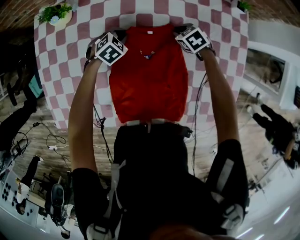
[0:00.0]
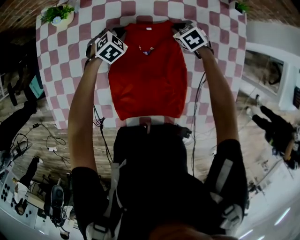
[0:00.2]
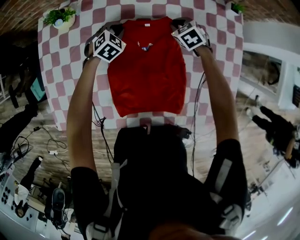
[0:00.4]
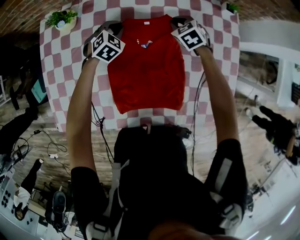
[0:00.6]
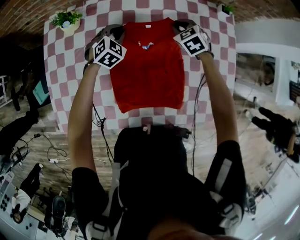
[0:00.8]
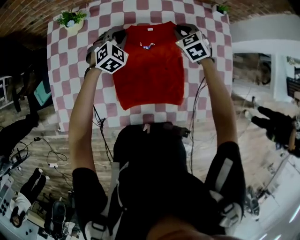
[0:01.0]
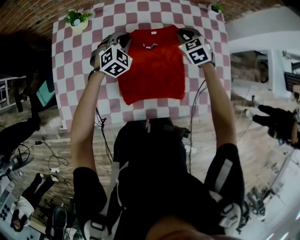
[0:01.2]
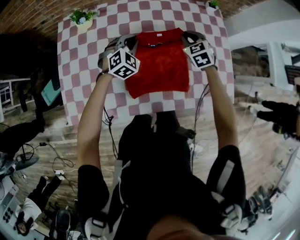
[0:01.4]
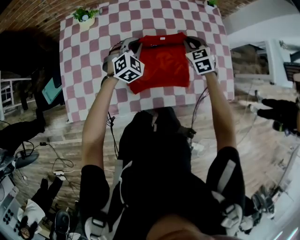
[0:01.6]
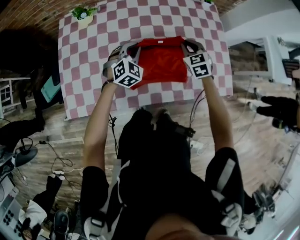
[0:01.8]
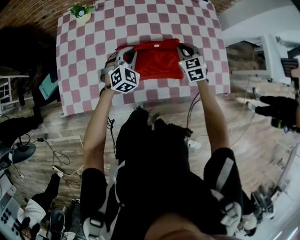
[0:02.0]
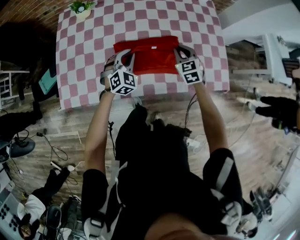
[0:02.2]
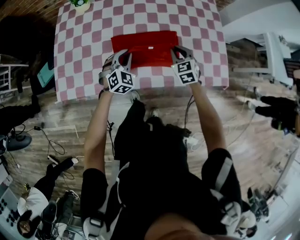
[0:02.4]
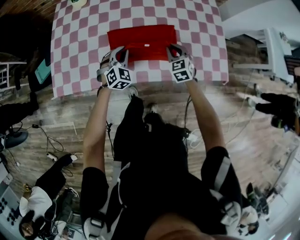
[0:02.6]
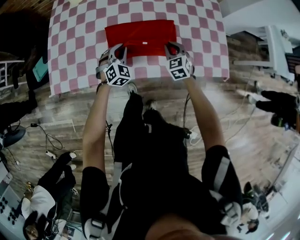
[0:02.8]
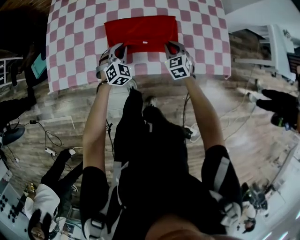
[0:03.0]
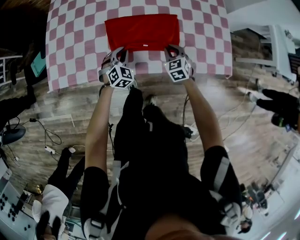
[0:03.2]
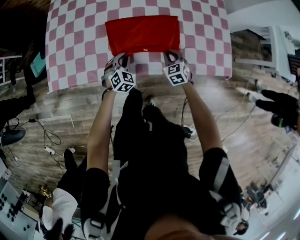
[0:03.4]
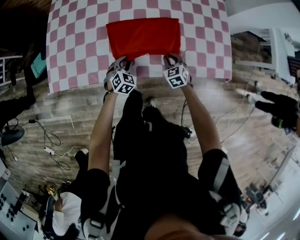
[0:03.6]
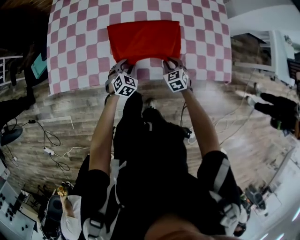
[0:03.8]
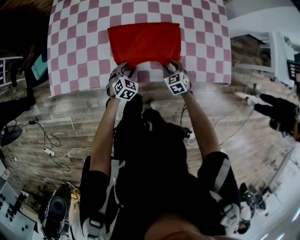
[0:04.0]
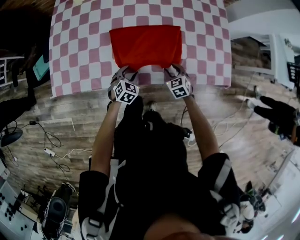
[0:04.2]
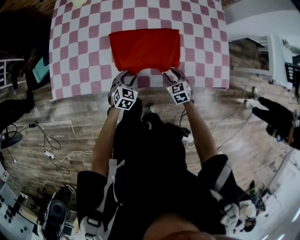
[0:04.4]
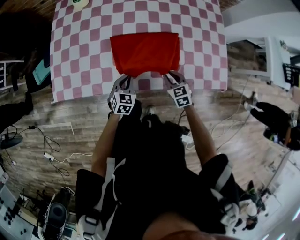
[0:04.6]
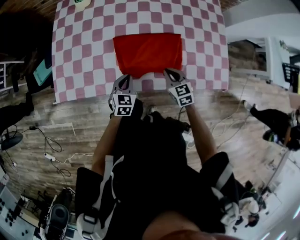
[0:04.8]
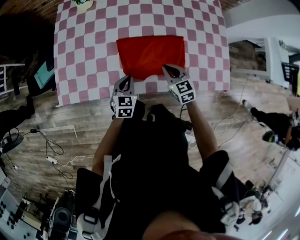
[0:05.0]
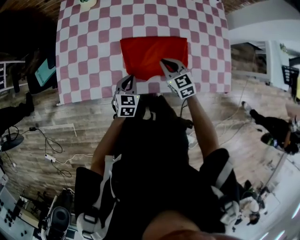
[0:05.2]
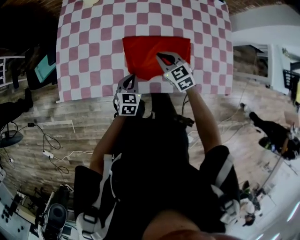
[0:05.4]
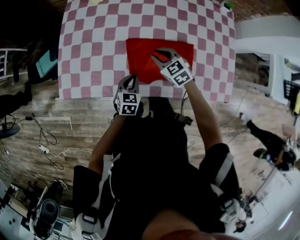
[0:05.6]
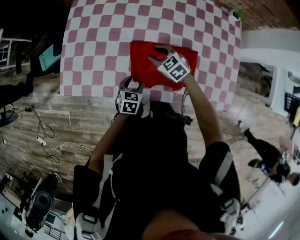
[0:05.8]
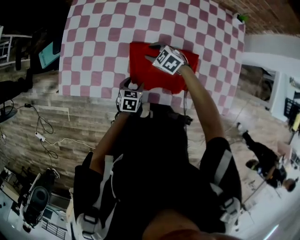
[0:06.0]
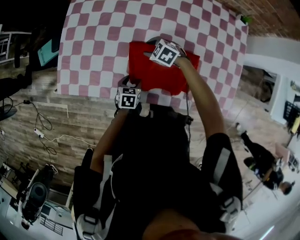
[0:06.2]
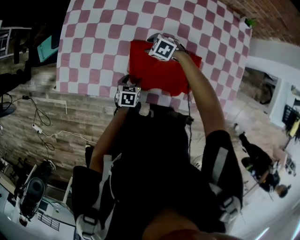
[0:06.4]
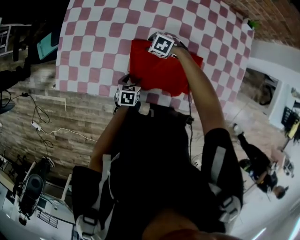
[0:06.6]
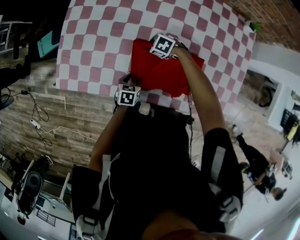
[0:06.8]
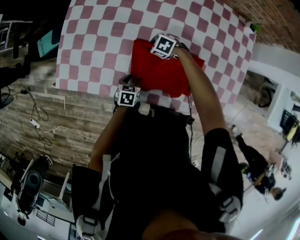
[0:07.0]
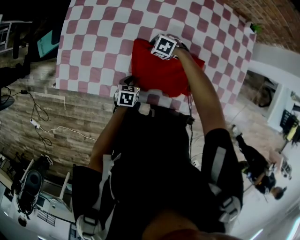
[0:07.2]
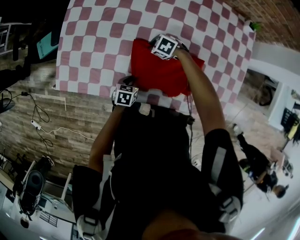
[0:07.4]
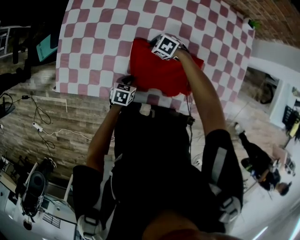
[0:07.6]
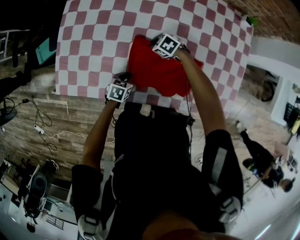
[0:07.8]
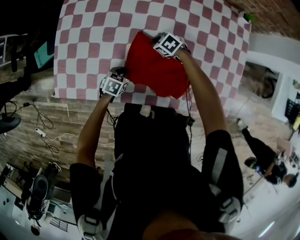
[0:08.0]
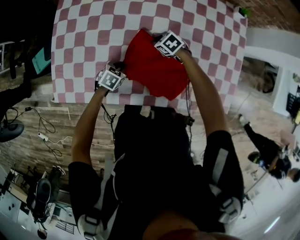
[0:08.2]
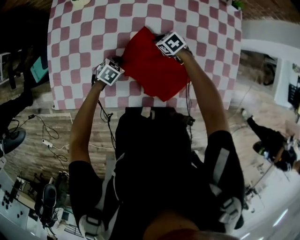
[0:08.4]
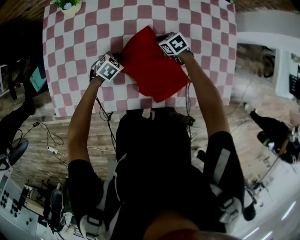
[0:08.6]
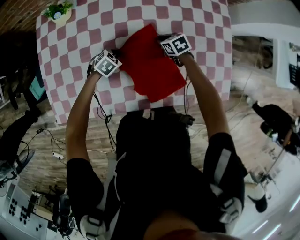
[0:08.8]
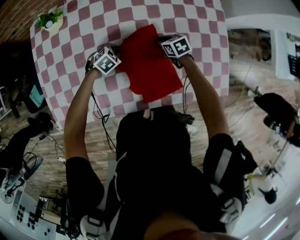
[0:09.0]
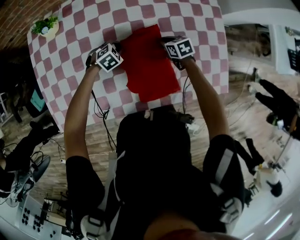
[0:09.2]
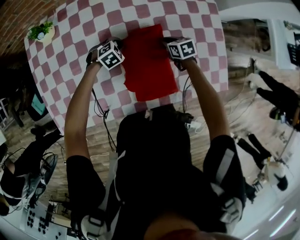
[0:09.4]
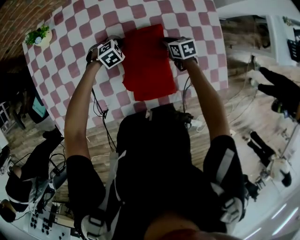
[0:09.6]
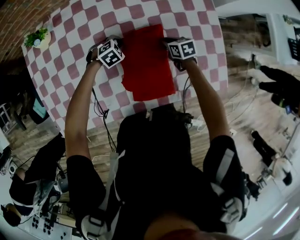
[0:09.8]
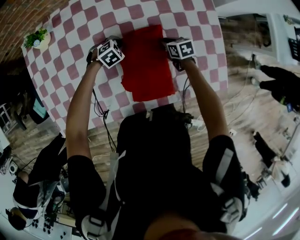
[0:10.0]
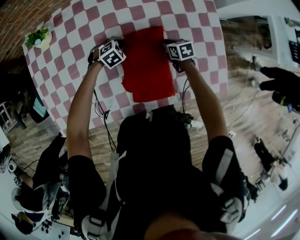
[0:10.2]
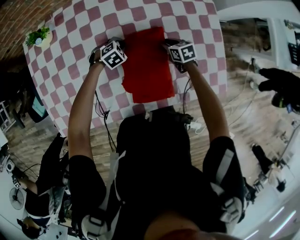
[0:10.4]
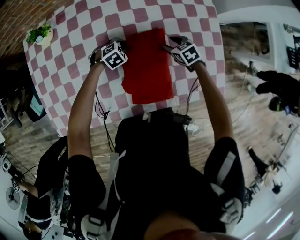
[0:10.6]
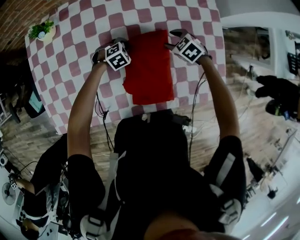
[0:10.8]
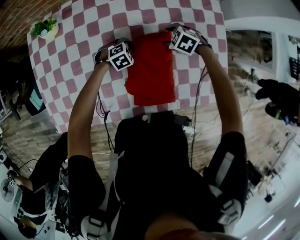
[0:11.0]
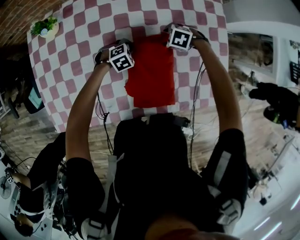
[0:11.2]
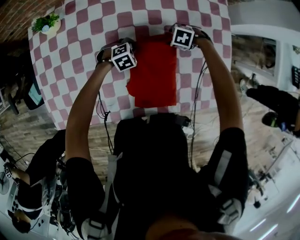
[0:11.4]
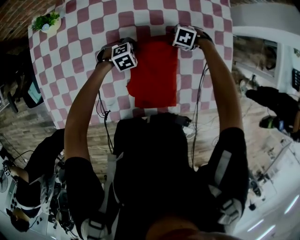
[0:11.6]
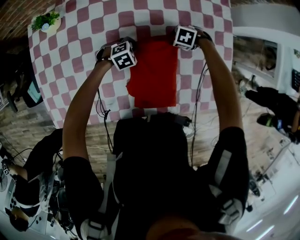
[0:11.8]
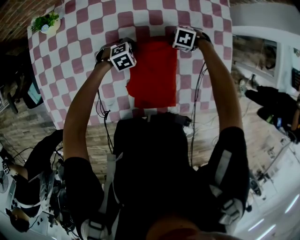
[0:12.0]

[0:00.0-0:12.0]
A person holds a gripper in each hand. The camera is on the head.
0:00.0 to 0:01.6: The grippers both shift upward and backward by approximately 30 cm. The right gripper changes its angle by some 40 degrees. The left gripper turns by approximately 30 degrees.
0:01.6 to 0:03.0: The two grippers go approximately 25 cm backward and downward.
0:03.0 to 0:04.4: The right gripper travels backward by roughly 5 cm, and opens, while the left gripper moves backward and downward, some 10 cm, swivels approximately 30 degrees, and opens.
0:04.4 to 0:06.0: The right gripper moves approximately 30 cm, changes its angle by some 40 degrees, and closes, then reopens. The left gripper travels upward and back again, approximately 10 cm each way, rotates roughly 30 degrees, and closes and opens again.
0:06.0 to 0:07.6: The right gripper travels downward by roughly 10 cm, and closes up, while the left gripper closes its fingers.
0:07.6 to 0:09.0: The left gripper ends up some 25 cm from where it was, and rolls clockwise, seen from behind, by approximately 50 degrees. The right gripper shifts by roughly 25 cm, and rolls clockwise, seen from behind, by roughly 50 degrees.
0:09.0 to 0:10.4: The right gripper moves to the right, some 10 cm. The left gripper is displaced to the right and forward by some 10 cm.
0:10.4 to 0:12.0: The right gripper rotates roughly 70 degrees, and opens, then closes once more.

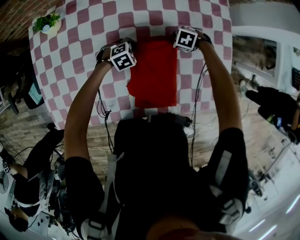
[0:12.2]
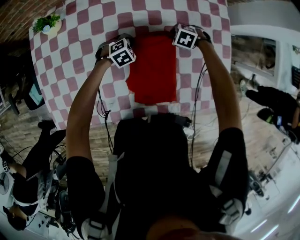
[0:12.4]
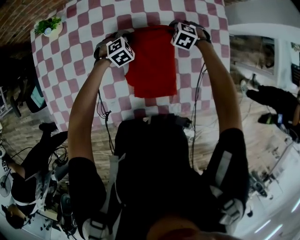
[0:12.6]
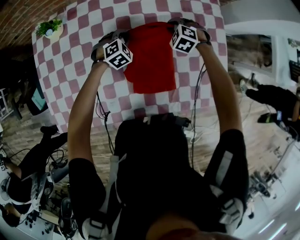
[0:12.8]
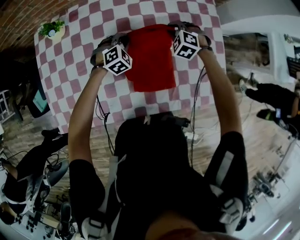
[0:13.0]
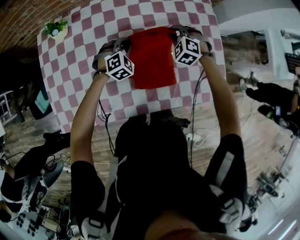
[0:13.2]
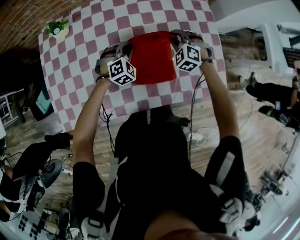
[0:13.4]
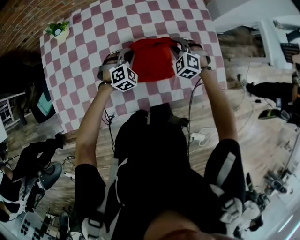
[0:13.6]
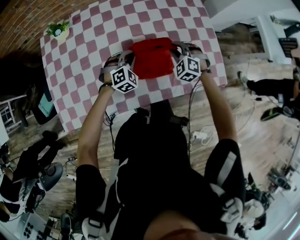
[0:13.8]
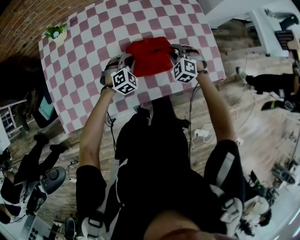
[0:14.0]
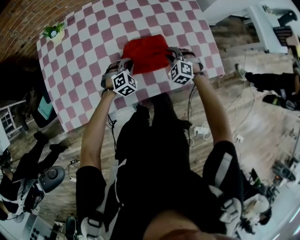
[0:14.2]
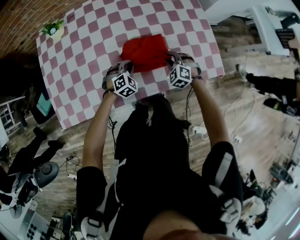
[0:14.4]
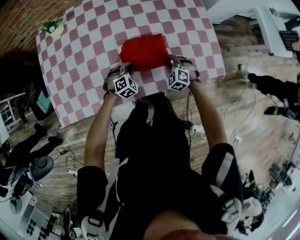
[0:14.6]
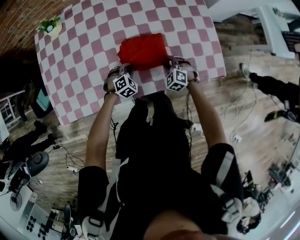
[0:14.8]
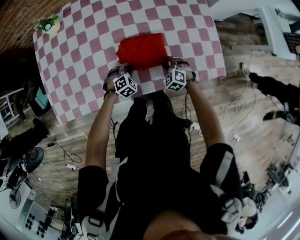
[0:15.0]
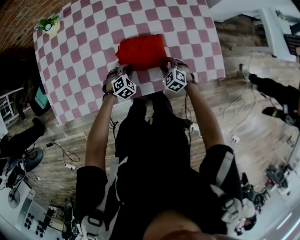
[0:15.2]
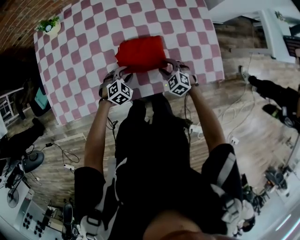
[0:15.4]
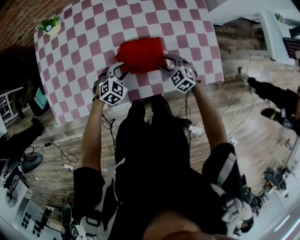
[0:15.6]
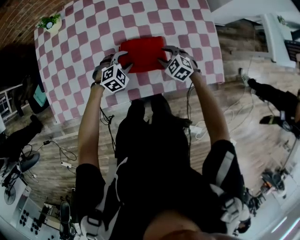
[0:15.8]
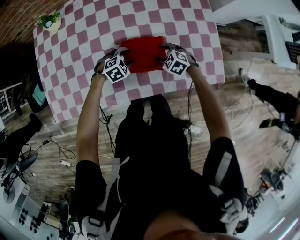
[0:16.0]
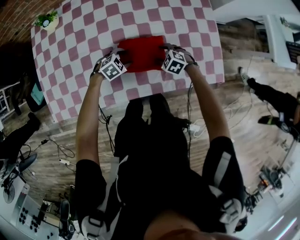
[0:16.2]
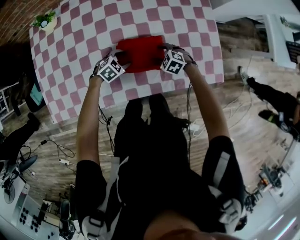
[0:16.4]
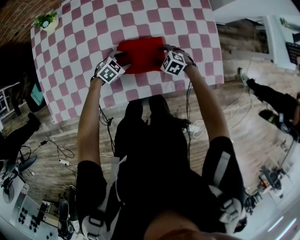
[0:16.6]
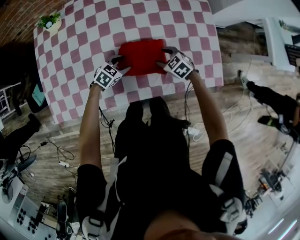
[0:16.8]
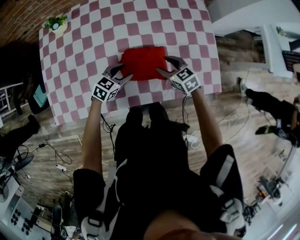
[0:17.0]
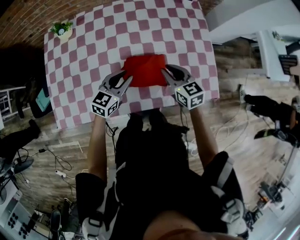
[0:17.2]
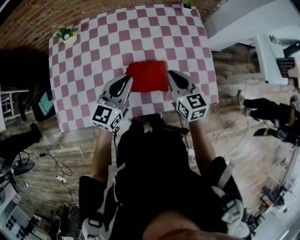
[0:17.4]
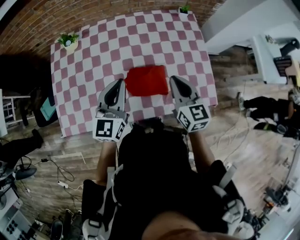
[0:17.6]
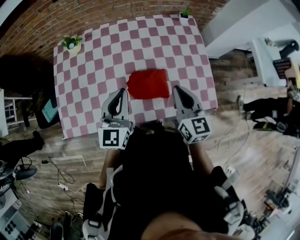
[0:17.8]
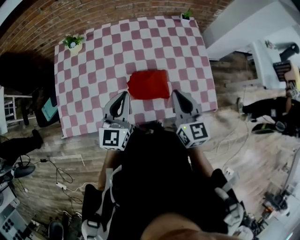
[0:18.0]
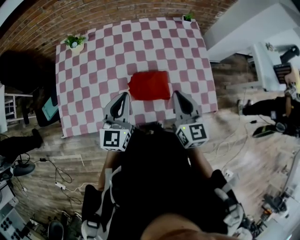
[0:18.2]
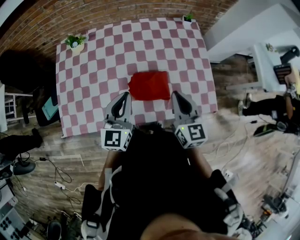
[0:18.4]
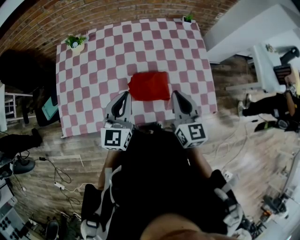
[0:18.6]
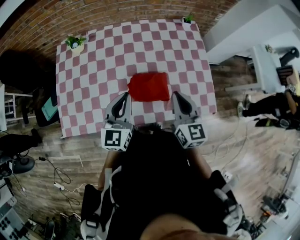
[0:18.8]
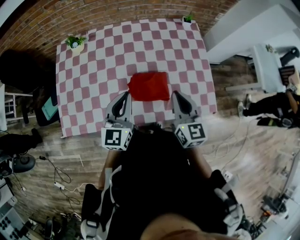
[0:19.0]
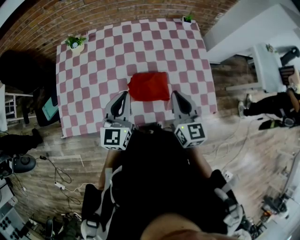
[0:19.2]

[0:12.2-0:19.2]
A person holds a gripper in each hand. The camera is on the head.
0:12.2 to 0:13.6: The grippers both shift upward by about 15 cm. The right gripper turns by roughly 50 degrees. The left gripper swivels approximately 30 degrees.
0:13.6 to 0:15.0: Both grippers move downward and backward, some 20 cm.
0:15.0 to 0:16.4: The left gripper moves approximately 10 cm upward and comes back, rotates approximately 20 degrees, and opens its fingers; the right gripper travels upward and back again, roughly 10 cm each way, changes its angle by some 20 degrees, and opens its fingers.
0:16.4 to 0:17.8: The grippers both shift upward by roughly 40 cm. The right gripper points its fingers about 50 degrees further upward, and closes. The left gripper points its fingers roughly 50 degrees further upward, and closes its fingers.
0:17.8 to 0:19.2: The grippers stay close to where they were, moving slightly.

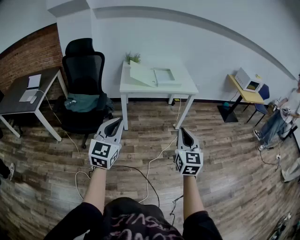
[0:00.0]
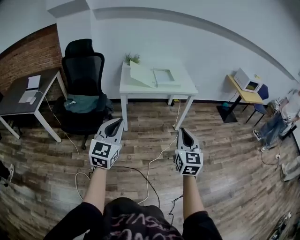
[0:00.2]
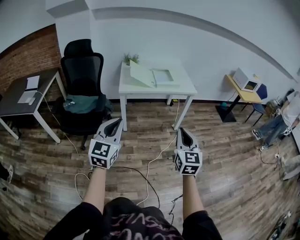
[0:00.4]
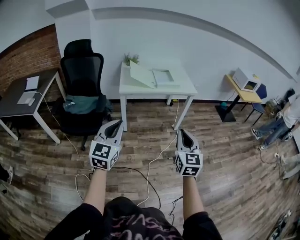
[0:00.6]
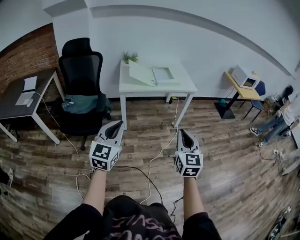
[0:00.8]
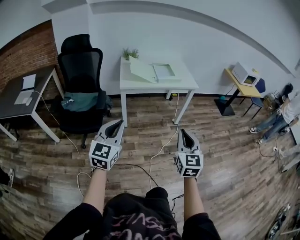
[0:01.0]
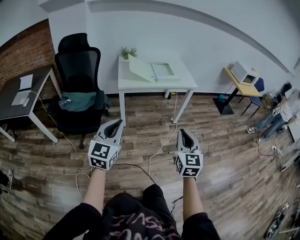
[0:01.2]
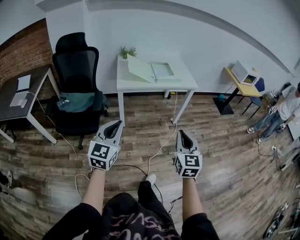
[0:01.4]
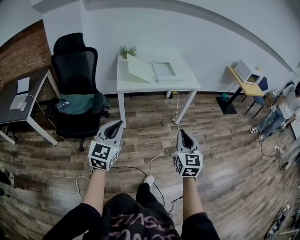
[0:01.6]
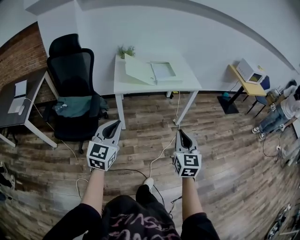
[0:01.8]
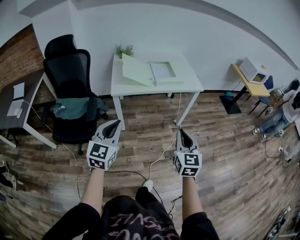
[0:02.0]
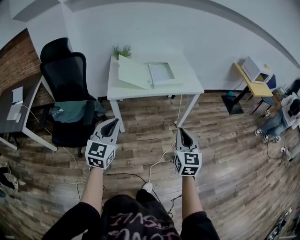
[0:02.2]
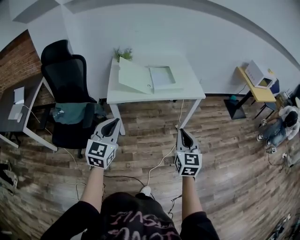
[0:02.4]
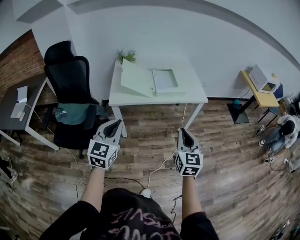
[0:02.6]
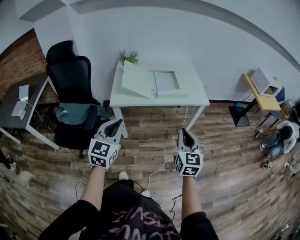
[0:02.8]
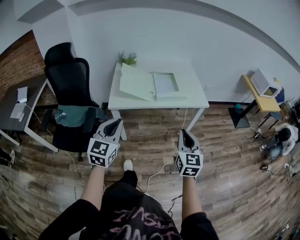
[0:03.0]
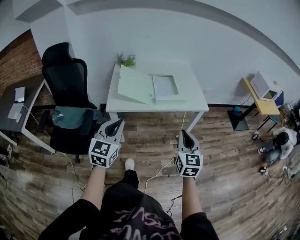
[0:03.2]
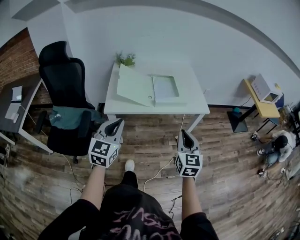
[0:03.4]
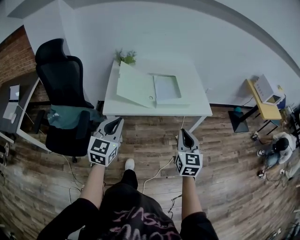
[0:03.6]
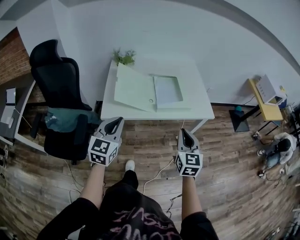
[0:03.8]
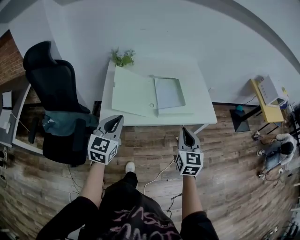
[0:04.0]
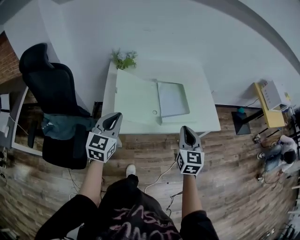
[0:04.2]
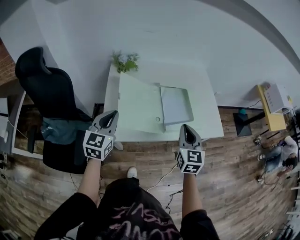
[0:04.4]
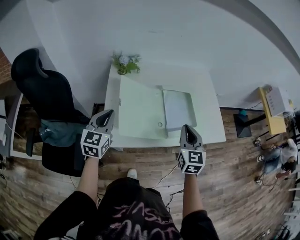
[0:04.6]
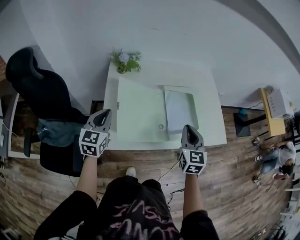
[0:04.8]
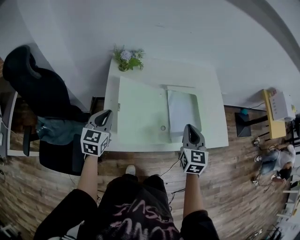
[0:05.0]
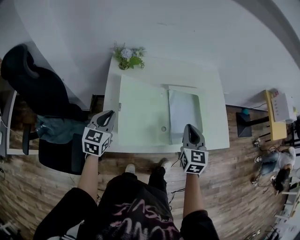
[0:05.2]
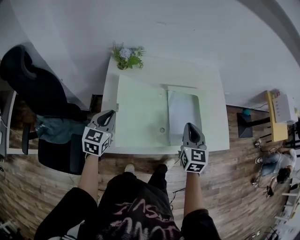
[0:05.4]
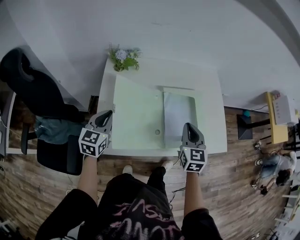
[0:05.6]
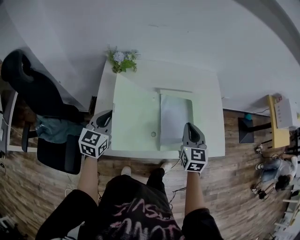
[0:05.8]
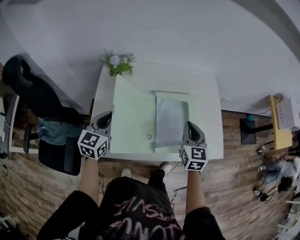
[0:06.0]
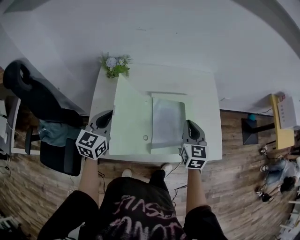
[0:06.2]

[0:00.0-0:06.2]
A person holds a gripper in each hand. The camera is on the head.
0:00.0 to 0:01.6: The right gripper goes roughly 10 cm forward and to the left; the left gripper heads forward, downward and to the left, covering about 10 cm.
0:01.6 to 0:03.2: The grippers both shift forward by roughly 30 cm.
0:03.2 to 0:04.6: The left gripper shifts some 40 cm forward and to the left. The right gripper is displaced forward by some 35 cm.
0:04.6 to 0:06.2: The two grippers go about 15 cm forward and to the right.
